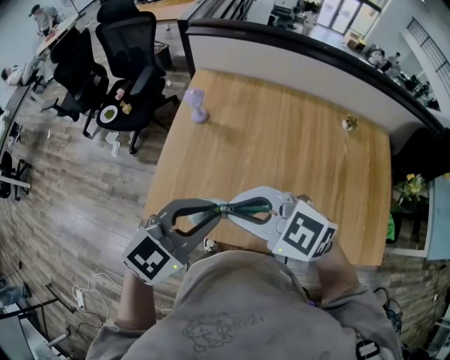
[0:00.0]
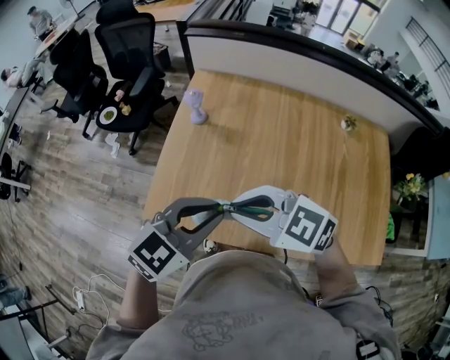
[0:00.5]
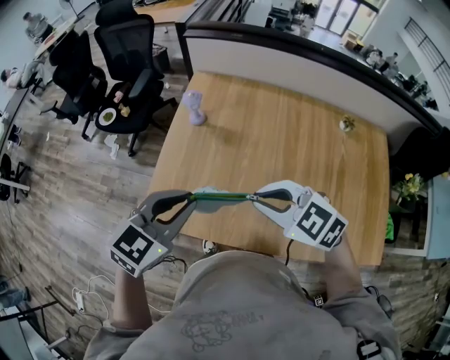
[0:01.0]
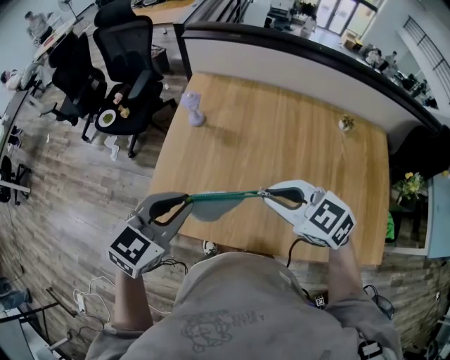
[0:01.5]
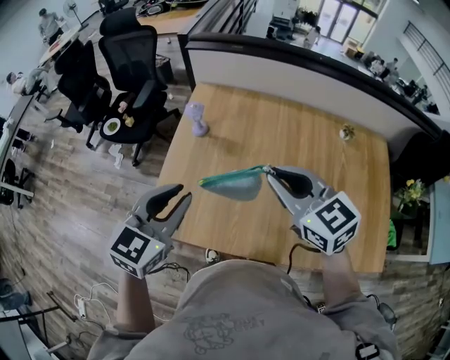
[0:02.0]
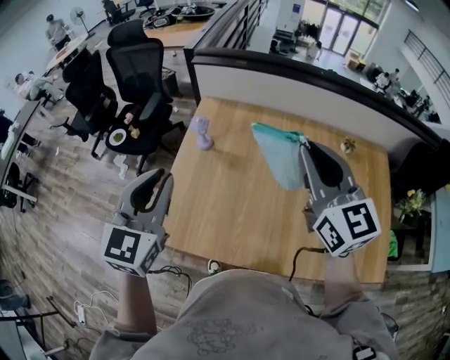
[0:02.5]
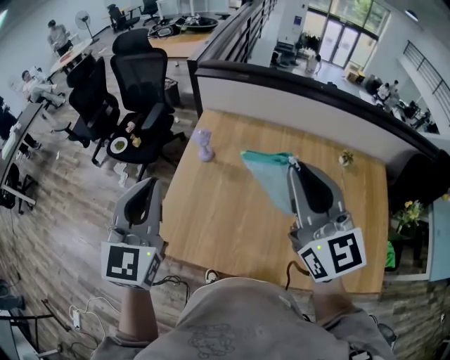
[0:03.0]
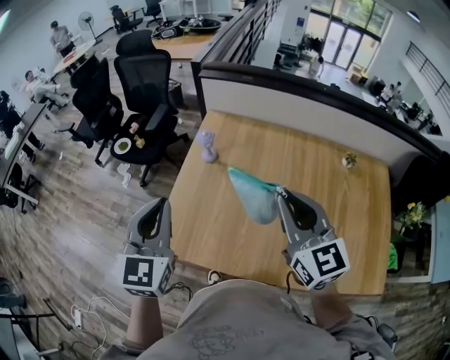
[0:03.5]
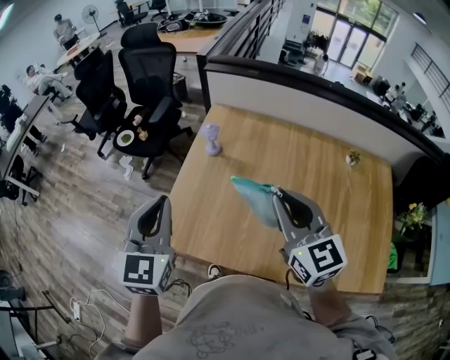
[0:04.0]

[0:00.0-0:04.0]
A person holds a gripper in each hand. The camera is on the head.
0:00.0 to 0:02.0: The right gripper moves about 15 cm, and rotates roughly 40 degrees; the left gripper changes place by some 10 cm.
0:02.0 to 0:04.0: The left gripper moves to the left, roughly 5 cm, and swivels approximately 30 degrees; the right gripper moves roughly 15 cm upward and comes back.

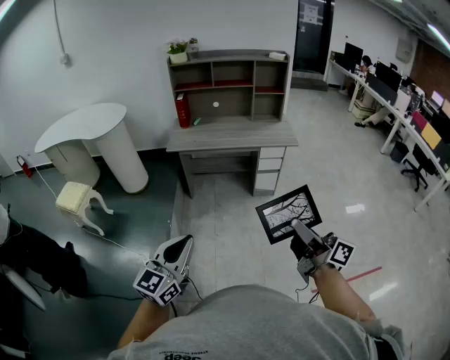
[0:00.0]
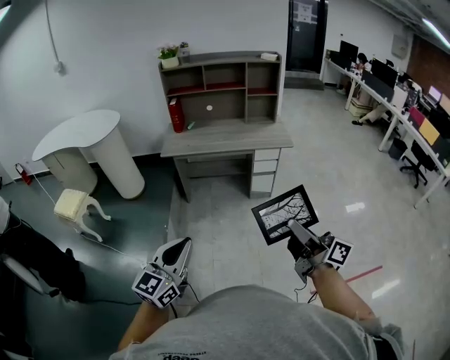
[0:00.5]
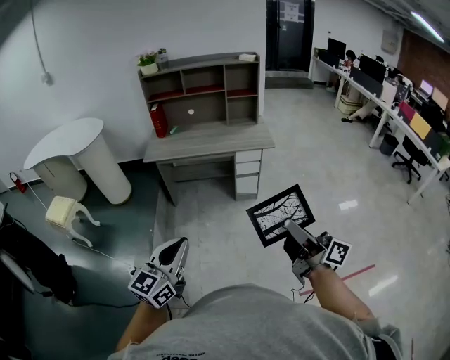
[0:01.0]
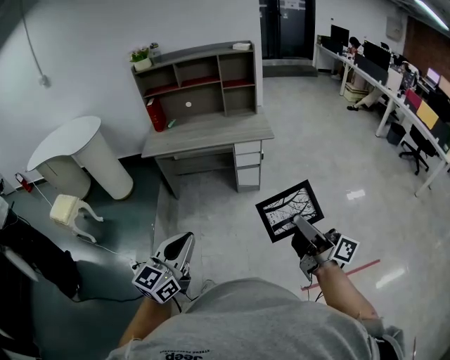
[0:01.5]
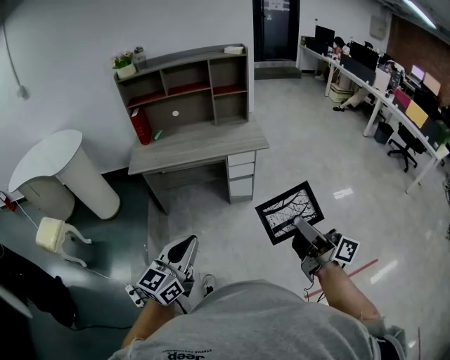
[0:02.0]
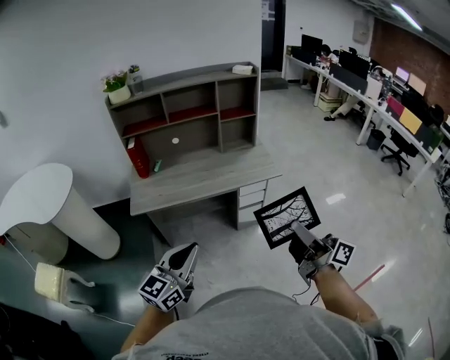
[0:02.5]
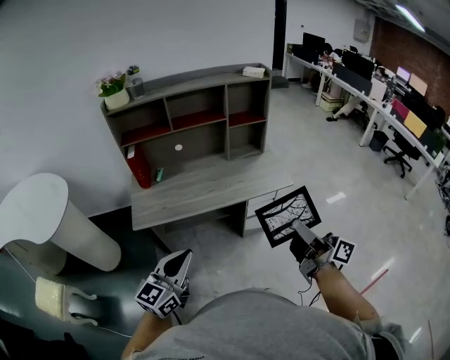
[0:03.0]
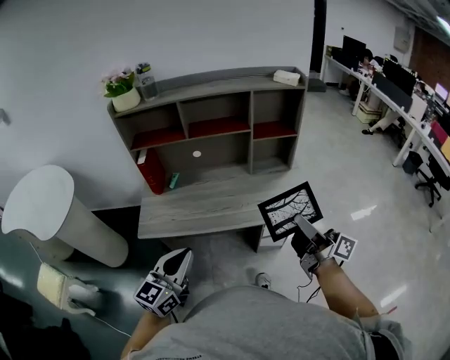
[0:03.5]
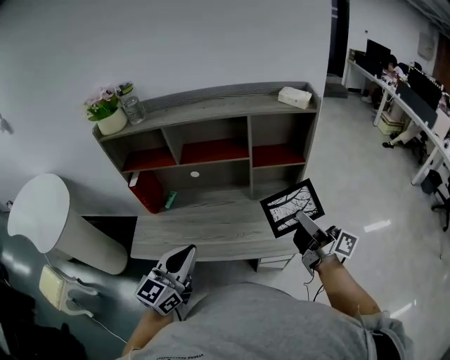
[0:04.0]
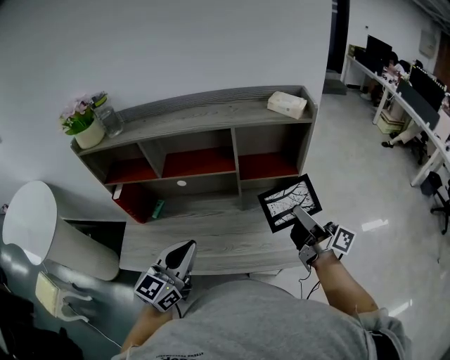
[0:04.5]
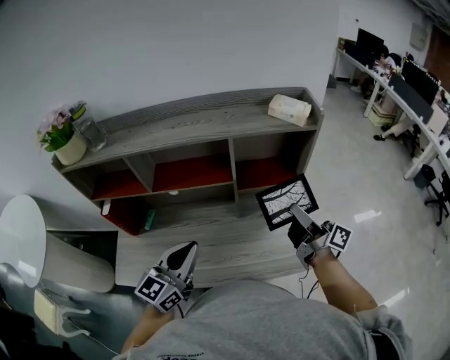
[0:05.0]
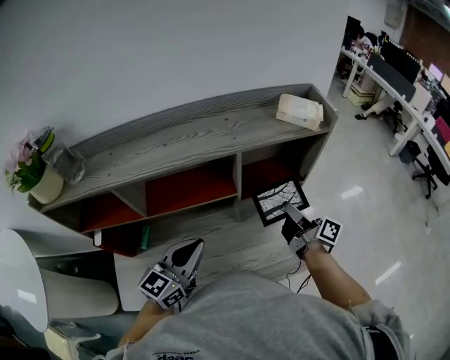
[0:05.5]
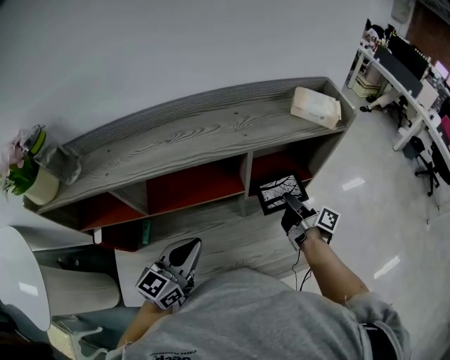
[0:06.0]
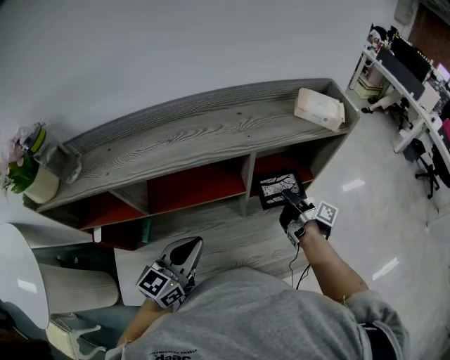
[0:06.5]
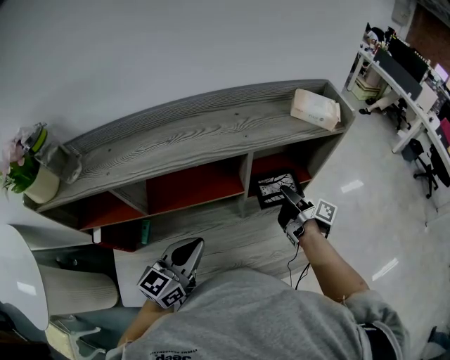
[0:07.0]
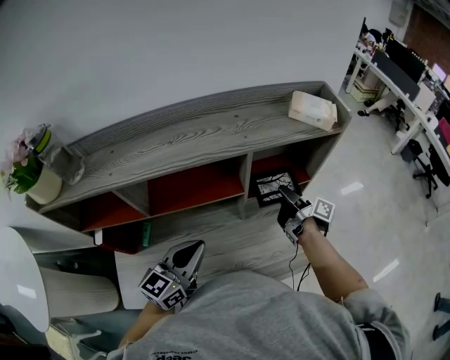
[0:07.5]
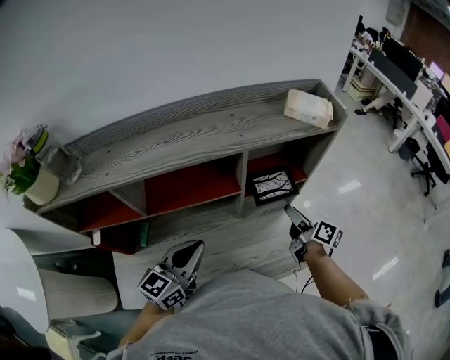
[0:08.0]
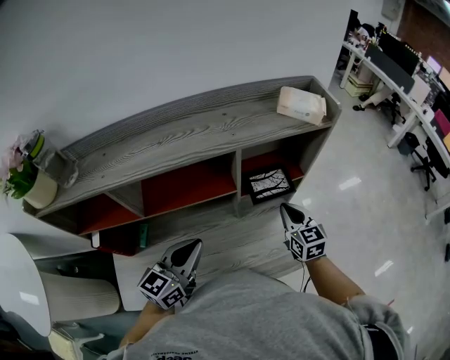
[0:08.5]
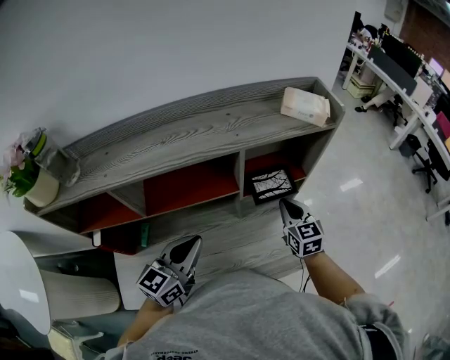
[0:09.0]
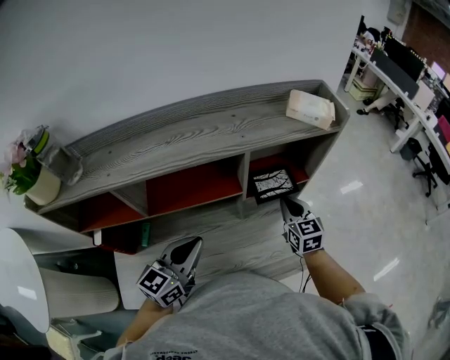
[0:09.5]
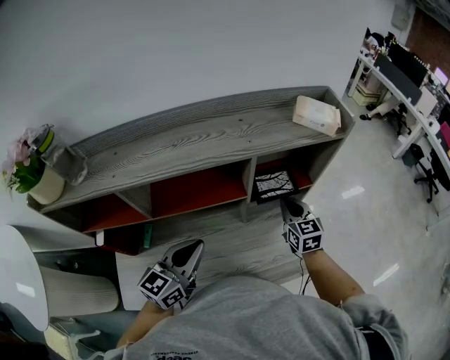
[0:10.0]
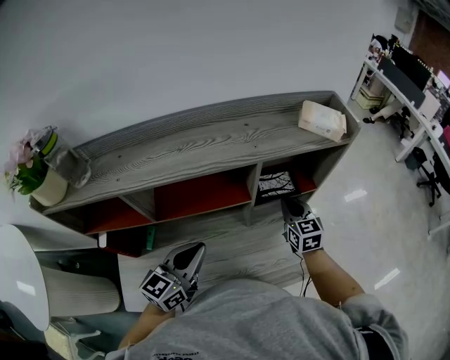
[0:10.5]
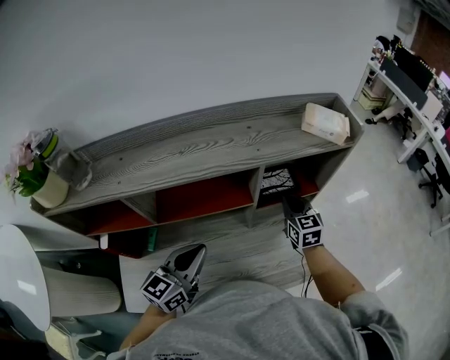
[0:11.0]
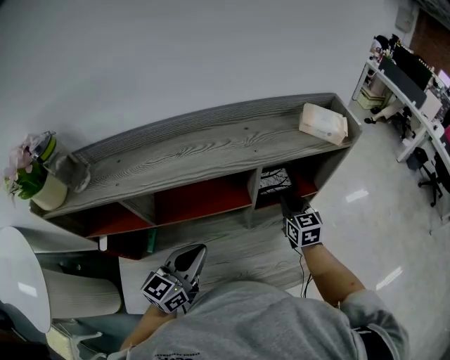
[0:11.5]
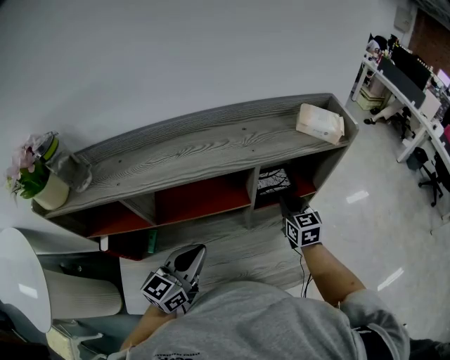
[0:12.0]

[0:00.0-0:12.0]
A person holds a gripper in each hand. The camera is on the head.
0:00.0 to 0:02.0: The grippers both shift to the right and forward by about 20 cm.
0:02.0 to 0:04.0: The pair of grippers is taken forward, about 60 cm.
0:04.0 to 0:06.0: The right gripper moves forward and downward, roughly 30 cm, and swivels some 40 degrees. The left gripper moves forward, approximately 25 cm.
0:06.0 to 0:08.0: The right gripper changes its angle by roughly 20 degrees, and opens its fingers.
0:08.0 to 0:10.0: The right gripper changes place by some 5 cm, rotates around the line of its fingers by approximately 60 degrees, counterclockwise from behind, and closes its fingers.
0:10.0 to 0:12.0: The grippers stay close to where they were, moving slightly.

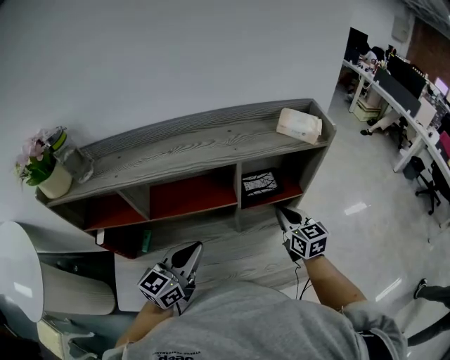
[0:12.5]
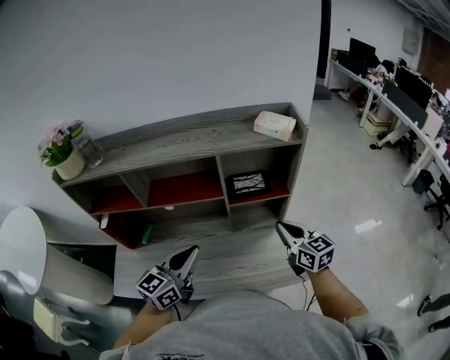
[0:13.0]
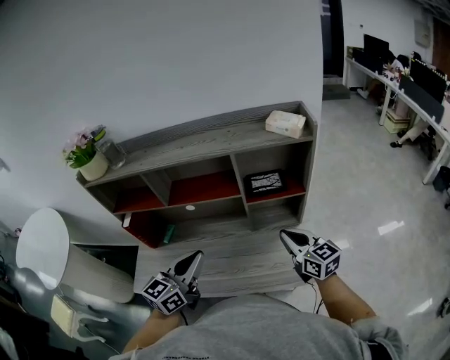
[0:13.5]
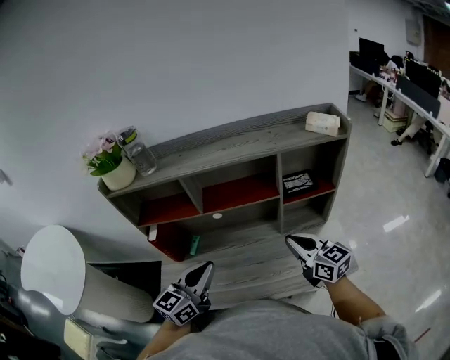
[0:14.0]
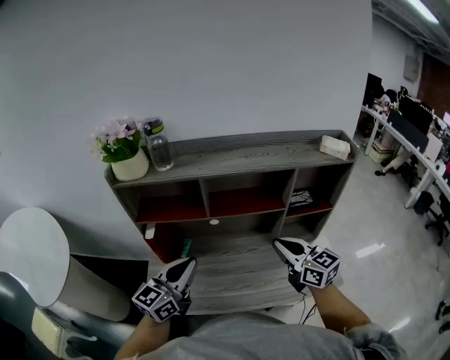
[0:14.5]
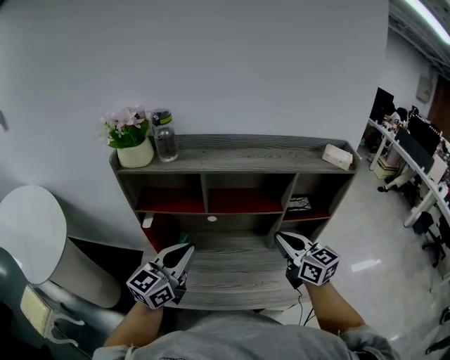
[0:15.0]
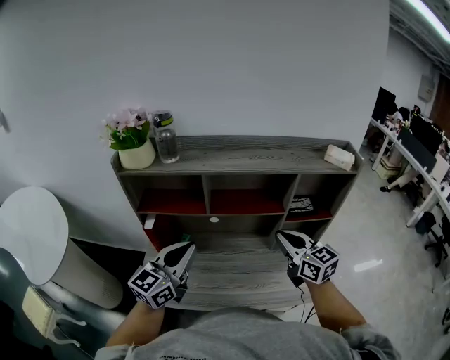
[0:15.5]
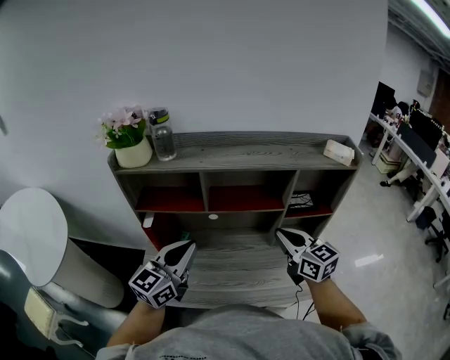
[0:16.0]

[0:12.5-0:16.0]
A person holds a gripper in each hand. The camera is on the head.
0:12.5 to 0:14.5: The right gripper travels to the left, backward and upward by roughly 30 cm, and swivels some 20 degrees; the left gripper travels to the left and backward by approximately 20 cm.
0:14.5 to 0:16.0: The grippers make only small movements.

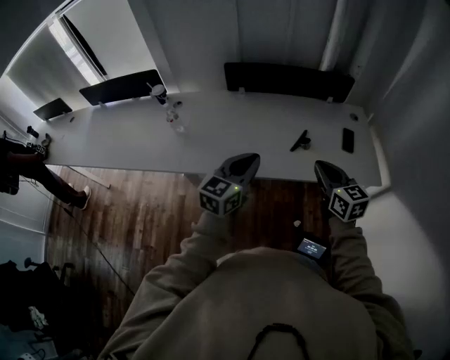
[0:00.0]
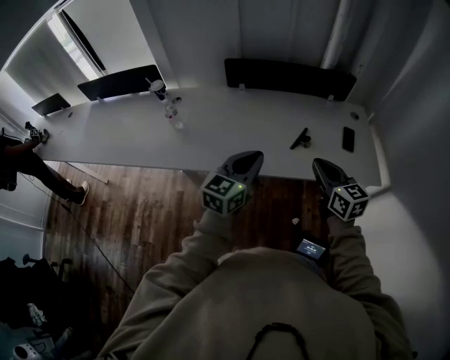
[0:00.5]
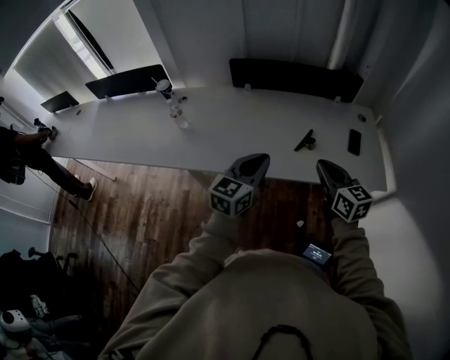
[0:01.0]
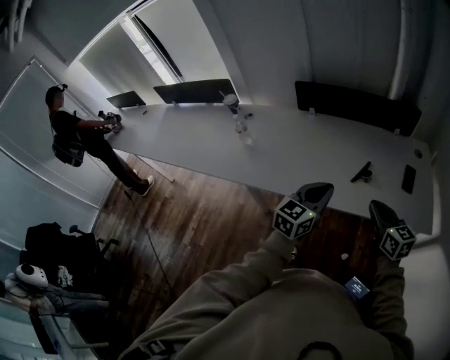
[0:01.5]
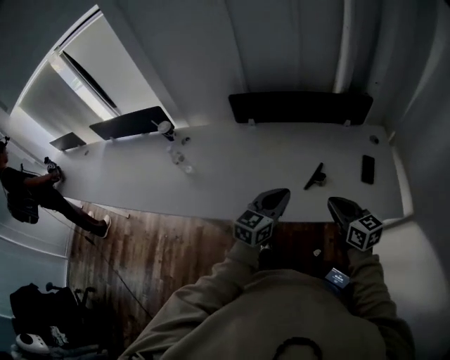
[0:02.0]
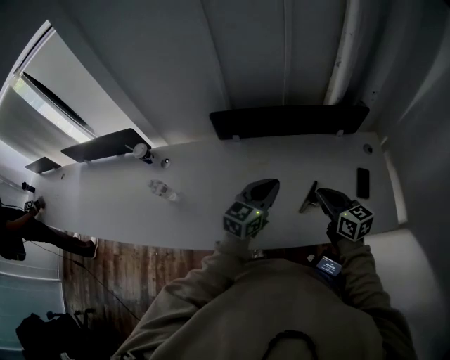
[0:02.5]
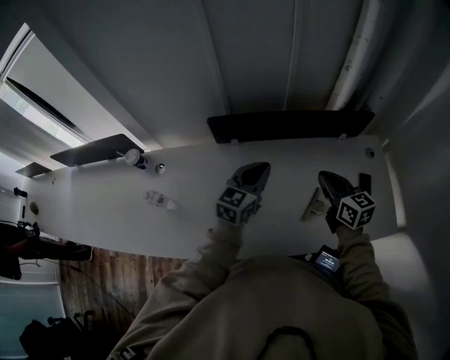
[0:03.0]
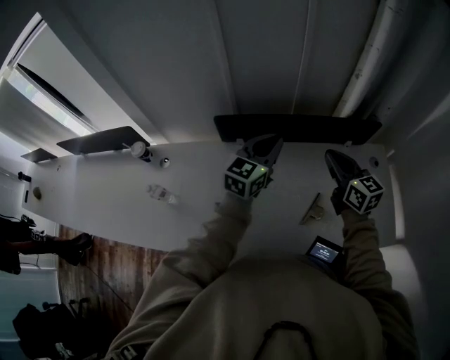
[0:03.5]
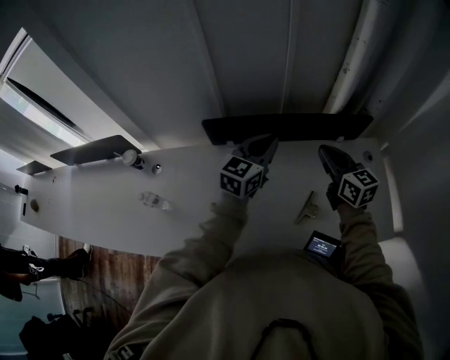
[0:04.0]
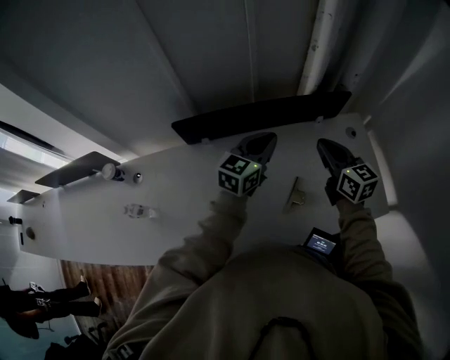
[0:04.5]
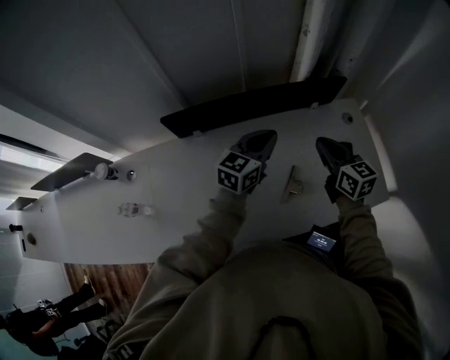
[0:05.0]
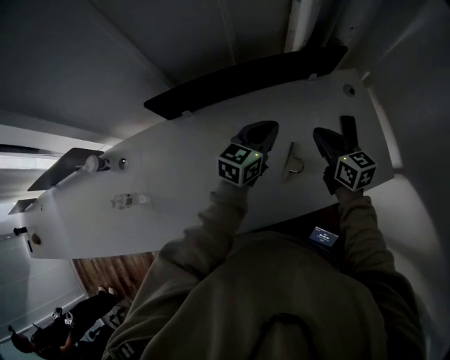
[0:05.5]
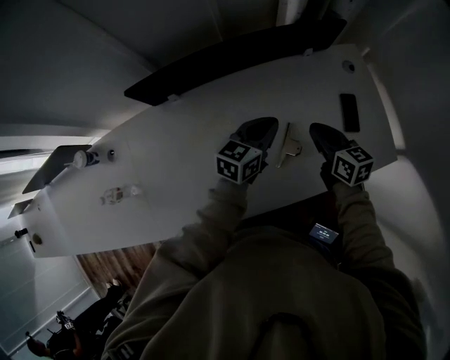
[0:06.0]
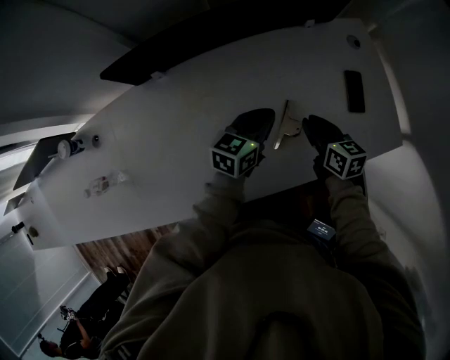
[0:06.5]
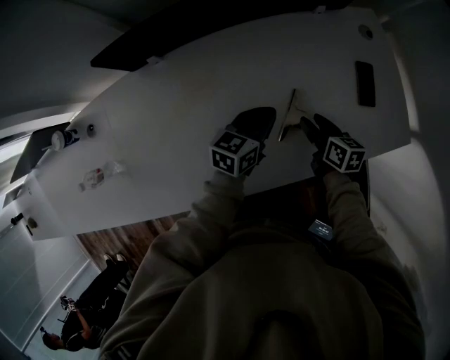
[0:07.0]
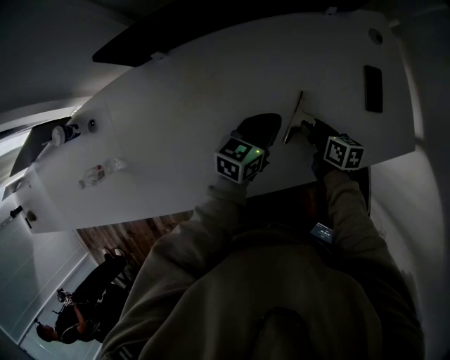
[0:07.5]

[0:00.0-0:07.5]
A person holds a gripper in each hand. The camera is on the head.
0:00.0 to 0:02.0: The left gripper moves forward, to the right and downward, about 15 cm. Meanwhile the right gripper is displaced forward and downward by some 10 cm.
0:02.0 to 0:04.0: Both grippers travel together forward, approximately 35 cm.
0:04.0 to 0:05.5: Both grippers travel together downward and to the right, about 20 cm. The left gripper rotates some 20 degrees.
0:05.5 to 0:07.5: The right gripper moves downward, about 25 cm, changes its angle by some 30 degrees, and opens its fingers; the left gripper moves downward and backward, about 20 cm.
